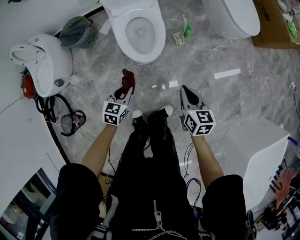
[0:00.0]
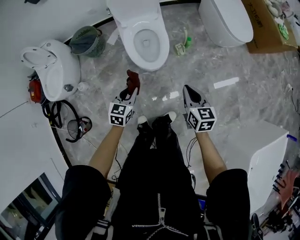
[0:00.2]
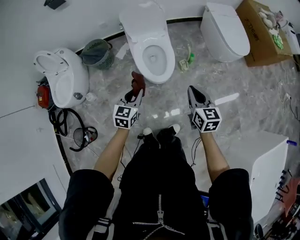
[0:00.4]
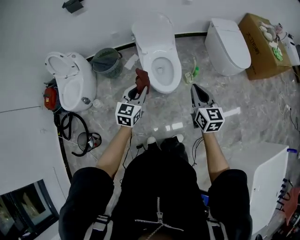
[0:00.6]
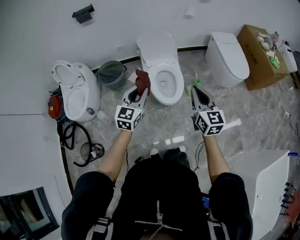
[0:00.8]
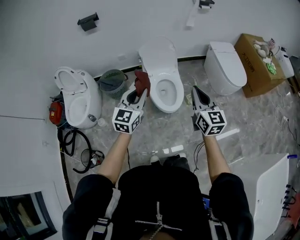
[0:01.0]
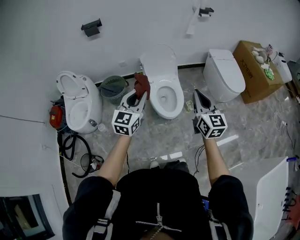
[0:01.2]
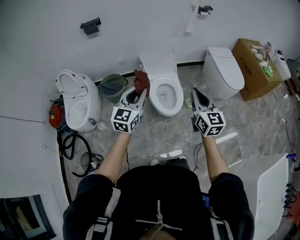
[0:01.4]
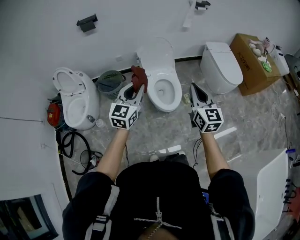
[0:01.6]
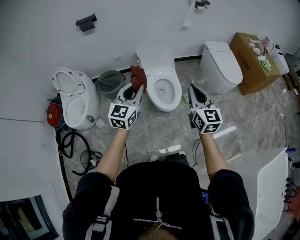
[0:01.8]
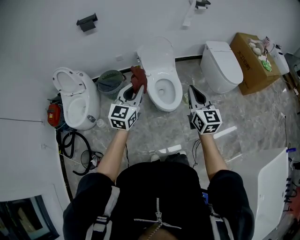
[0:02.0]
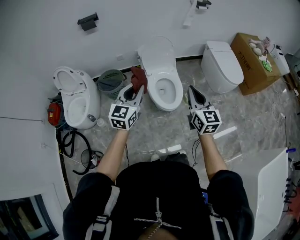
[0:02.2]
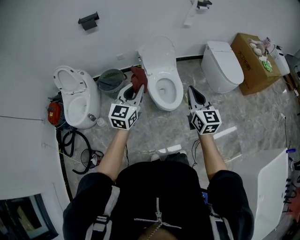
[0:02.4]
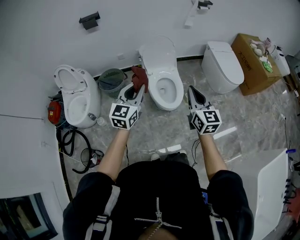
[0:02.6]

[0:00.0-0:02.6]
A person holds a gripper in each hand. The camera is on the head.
0:00.0 to 0:01.2: The left gripper travels upward by approximately 40 cm, and tilts its fingers roughly 40 degrees upward; the right gripper is displaced upward and to the left by roughly 40 cm, and tilts its fingers some 30 degrees upward.
0:01.2 to 0:02.6: The grippers move only a little.

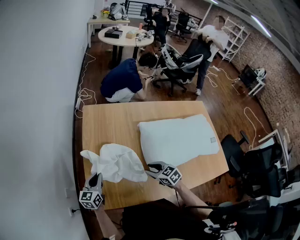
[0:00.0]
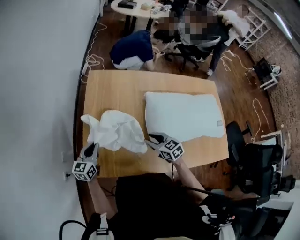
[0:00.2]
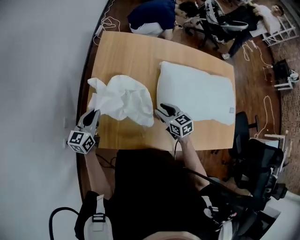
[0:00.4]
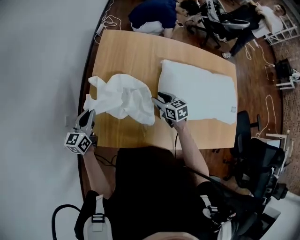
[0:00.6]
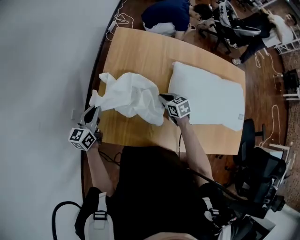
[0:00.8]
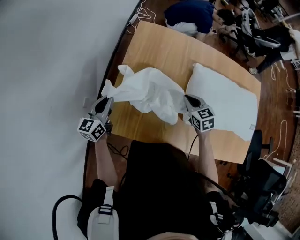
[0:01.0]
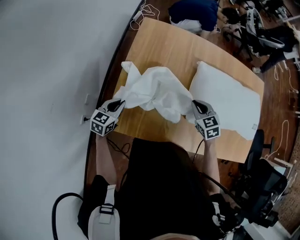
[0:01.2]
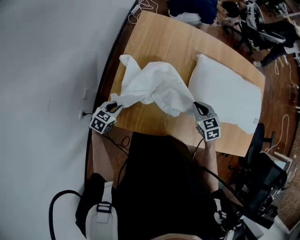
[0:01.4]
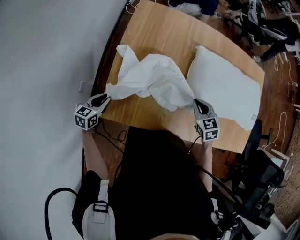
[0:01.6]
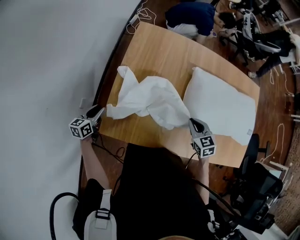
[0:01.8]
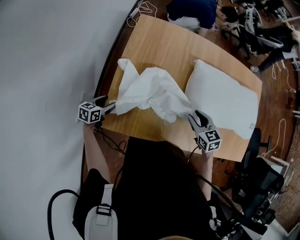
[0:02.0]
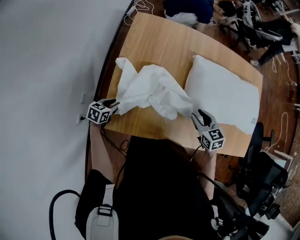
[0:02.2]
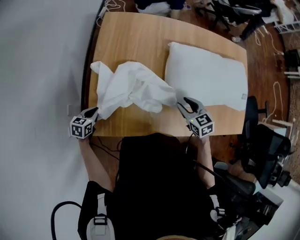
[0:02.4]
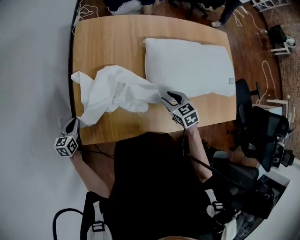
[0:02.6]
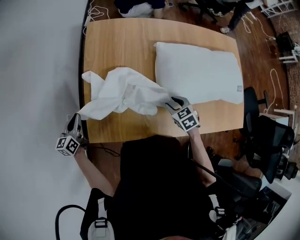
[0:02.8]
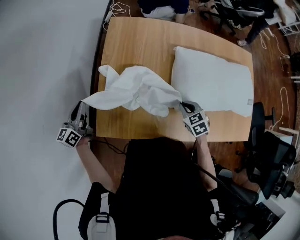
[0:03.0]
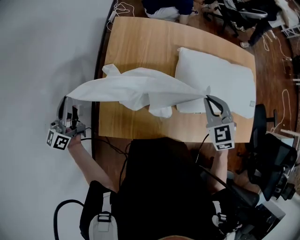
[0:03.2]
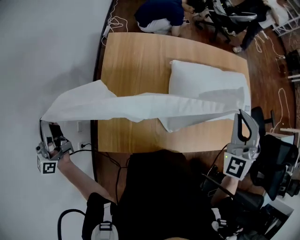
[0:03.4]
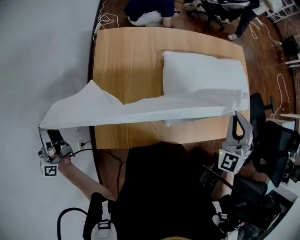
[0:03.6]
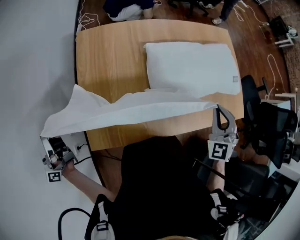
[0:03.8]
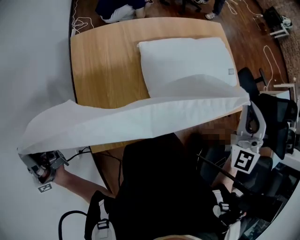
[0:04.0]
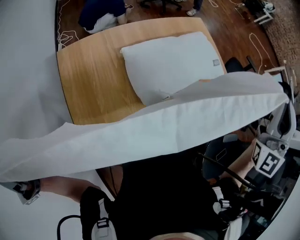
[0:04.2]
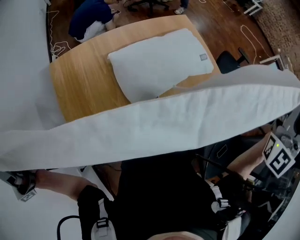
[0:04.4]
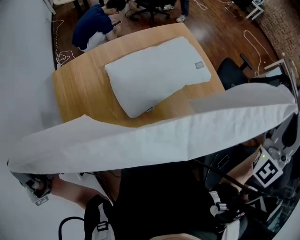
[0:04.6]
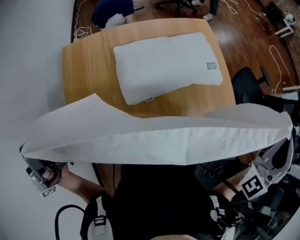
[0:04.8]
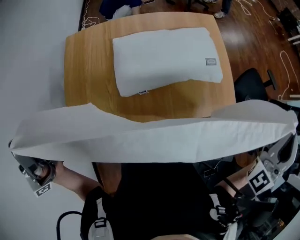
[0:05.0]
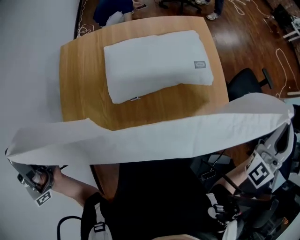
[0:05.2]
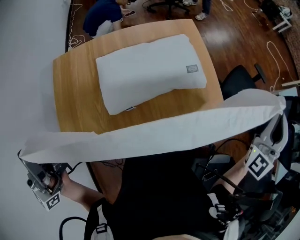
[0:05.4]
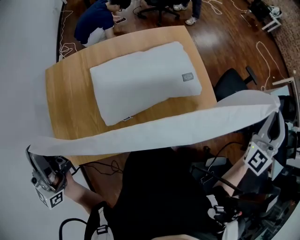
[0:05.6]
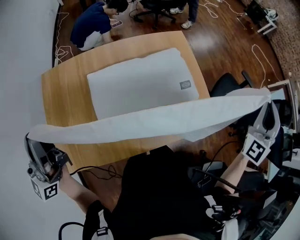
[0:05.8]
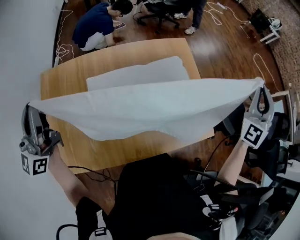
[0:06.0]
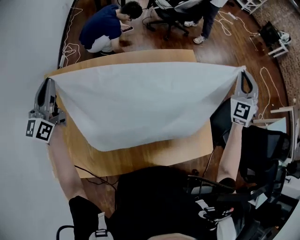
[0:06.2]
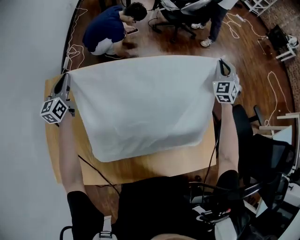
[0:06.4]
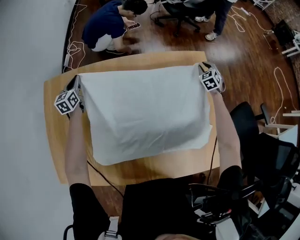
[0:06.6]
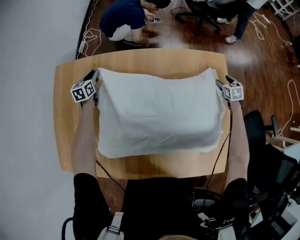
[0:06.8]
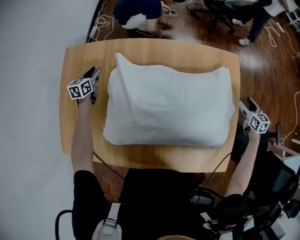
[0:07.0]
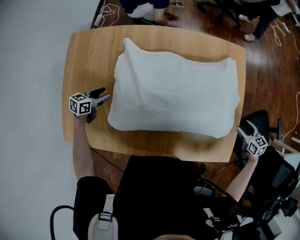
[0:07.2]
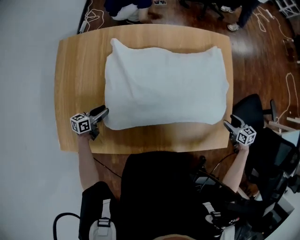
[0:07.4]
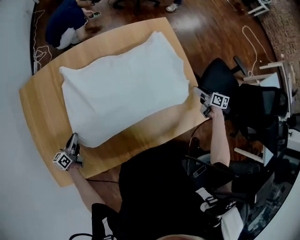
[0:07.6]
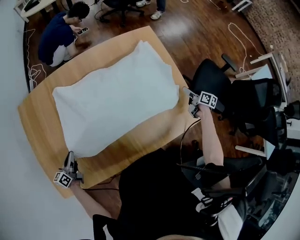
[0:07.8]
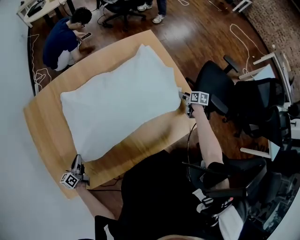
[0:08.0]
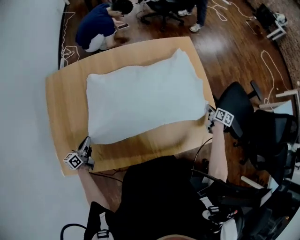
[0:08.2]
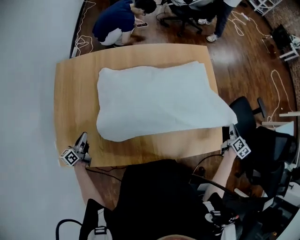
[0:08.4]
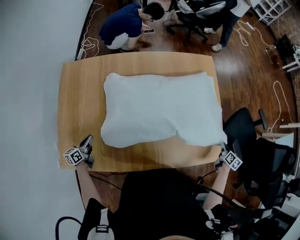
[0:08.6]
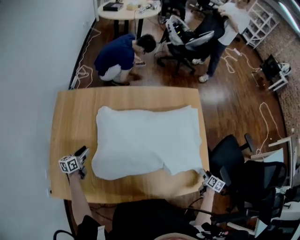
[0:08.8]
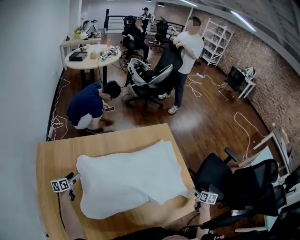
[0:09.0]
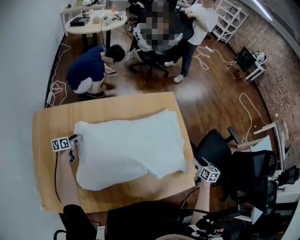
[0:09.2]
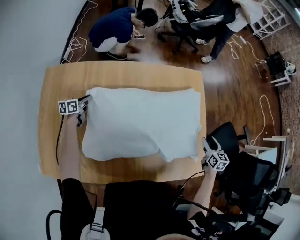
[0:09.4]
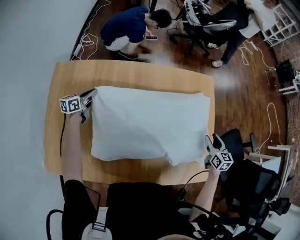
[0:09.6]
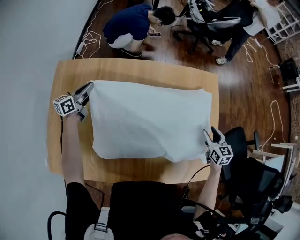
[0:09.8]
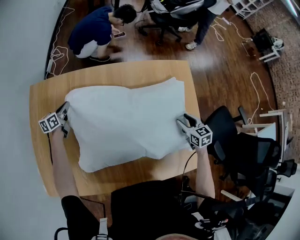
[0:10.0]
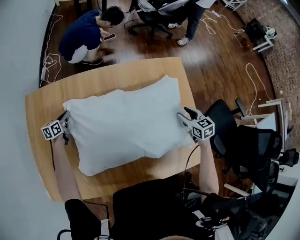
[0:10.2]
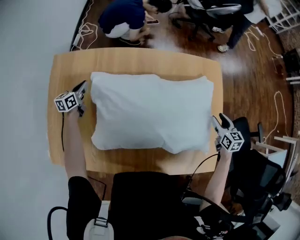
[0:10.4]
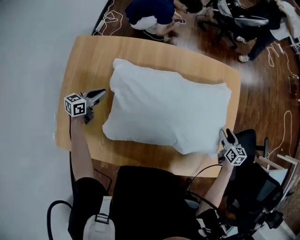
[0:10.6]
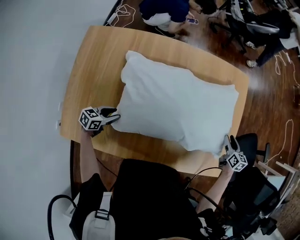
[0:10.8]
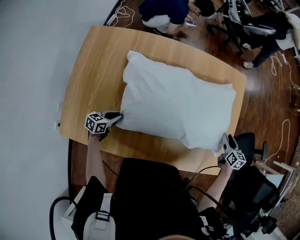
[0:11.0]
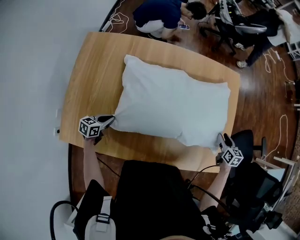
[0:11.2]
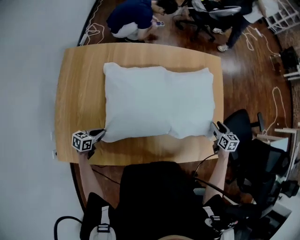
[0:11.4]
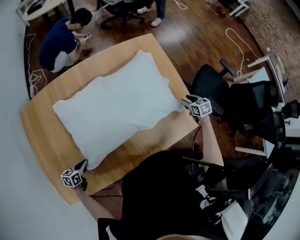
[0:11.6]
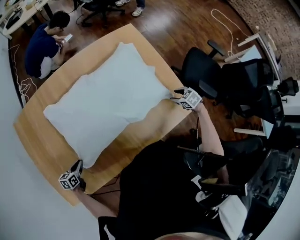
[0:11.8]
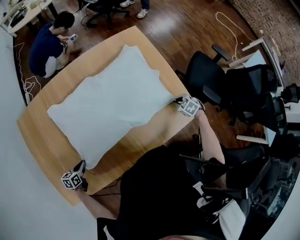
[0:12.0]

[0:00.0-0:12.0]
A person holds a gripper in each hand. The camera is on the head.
0:00.0 to 0:01.6: The left gripper moves downward and to the left, about 10 cm, and changes its angle by roughly 20 degrees; the right gripper travels to the right by some 5 cm, reaches approximately 15 cm forward, then returns, and closes.
0:01.6 to 0:03.0: The left gripper shifts approximately 15 cm upward and forward, turns by some 30 degrees, and opens, then closes again; the right gripper opens, then closes once more.
0:03.0 to 0:04.4: The right gripper goes up and down, roughly 60 cm each way, reversing 2 times, and angles its fingers upward, by roughly 80 degrees. The left gripper goes up and down, approximately 40 cm each way, reversing 2 times, and tips its fingers upward by approximately 60 degrees.
0:04.4 to 0:06.0: The two grippers go about 40 cm forward, to the right and downward. The right gripper turns by approximately 20 degrees. The left gripper tips its fingers downward by roughly 30 degrees.
0:06.0 to 0:07.6: Both grippers travel together downward, approximately 50 cm. The left gripper tips its fingers downward by about 40 degrees, and opens, then closes once more, while the right gripper rolls clockwise, seen from behind, by roughly 100 degrees, and opens up.
0:07.6 to 0:09.0: The left gripper travels forward by about 15 cm, and opens up; the right gripper swings up and down, some 15 cm each way, with 3 reversals, turns by some 30 degrees, and closes, then opens again.
0:09.0 to 0:10.4: The right gripper goes roughly 30 cm forward and to the left, and rotates approximately 40 degrees. The left gripper goes up and down, roughly 15 cm each way, reversing 3 times, and closes its fingers.
0:10.4 to 0:12.0: The left gripper ends up roughly 35 cm from where it was, swivels some 40 degrees, and opens, then closes once more. The right gripper shifts by some 25 cm, tilts its fingers approximately 30 degrees downward, and closes.

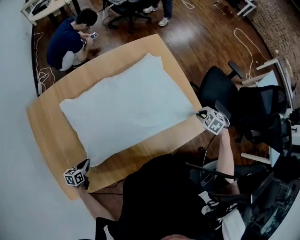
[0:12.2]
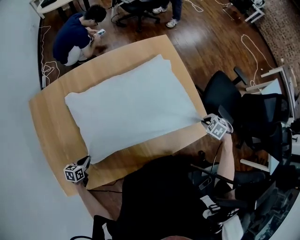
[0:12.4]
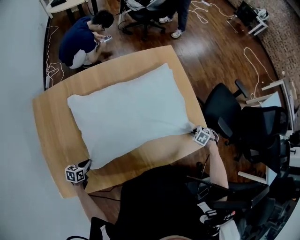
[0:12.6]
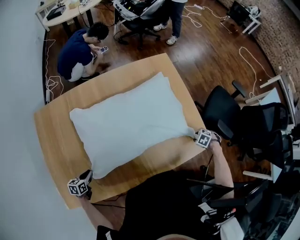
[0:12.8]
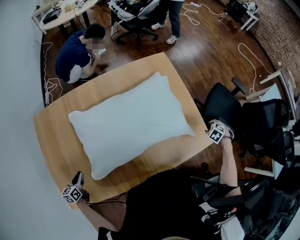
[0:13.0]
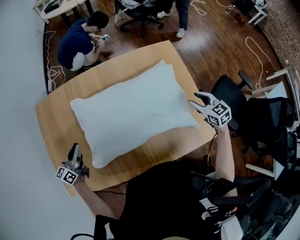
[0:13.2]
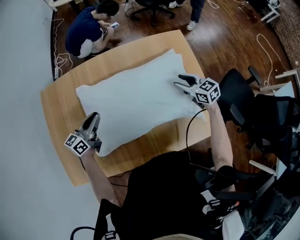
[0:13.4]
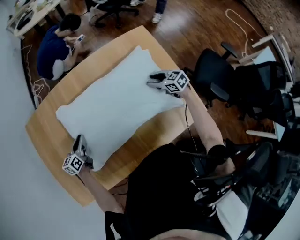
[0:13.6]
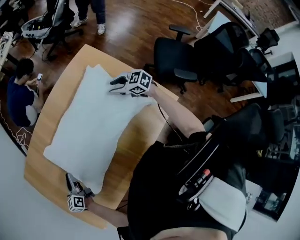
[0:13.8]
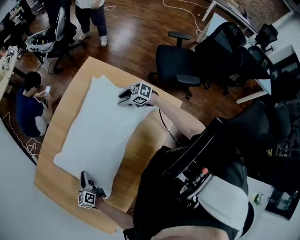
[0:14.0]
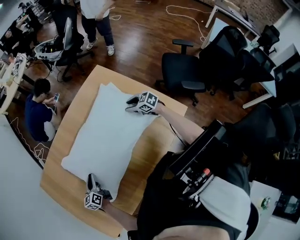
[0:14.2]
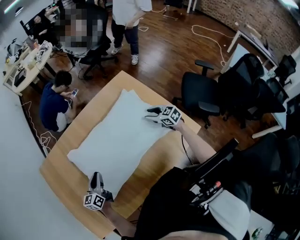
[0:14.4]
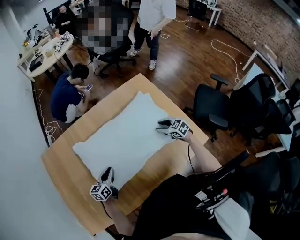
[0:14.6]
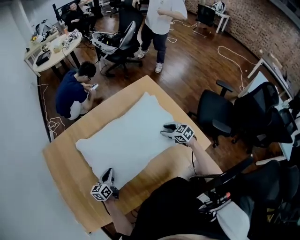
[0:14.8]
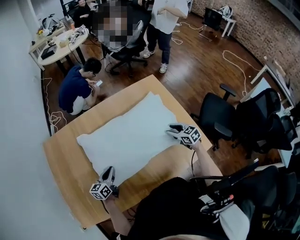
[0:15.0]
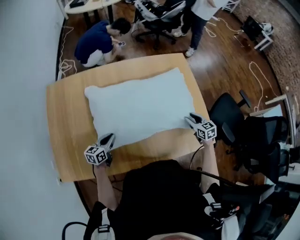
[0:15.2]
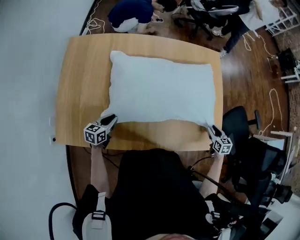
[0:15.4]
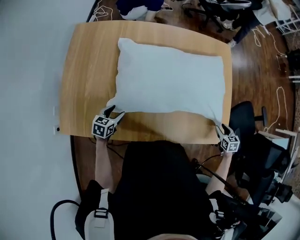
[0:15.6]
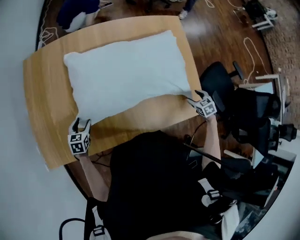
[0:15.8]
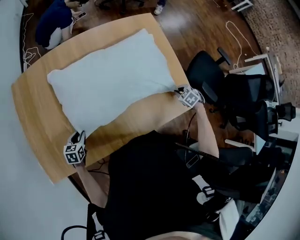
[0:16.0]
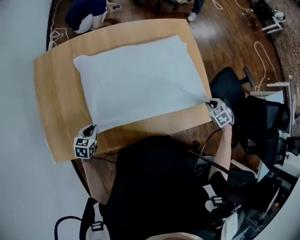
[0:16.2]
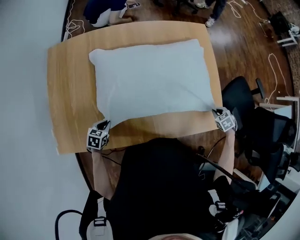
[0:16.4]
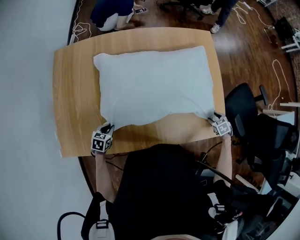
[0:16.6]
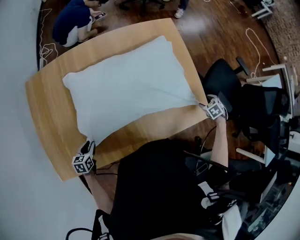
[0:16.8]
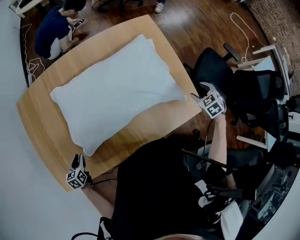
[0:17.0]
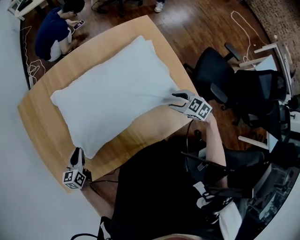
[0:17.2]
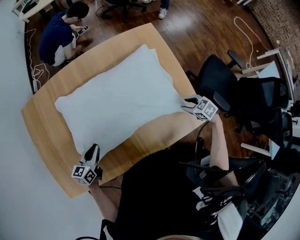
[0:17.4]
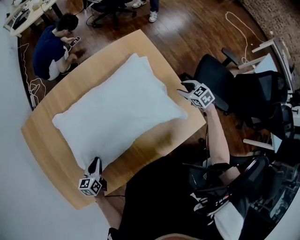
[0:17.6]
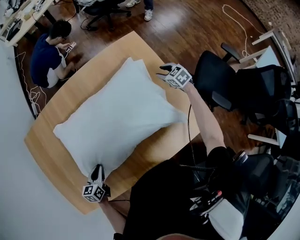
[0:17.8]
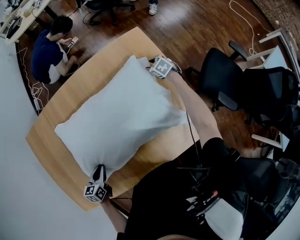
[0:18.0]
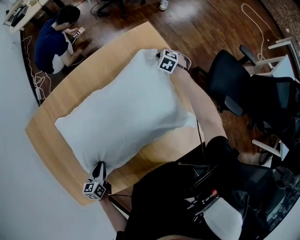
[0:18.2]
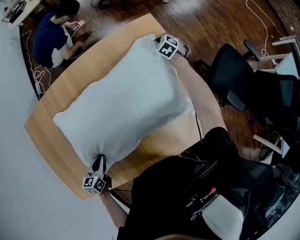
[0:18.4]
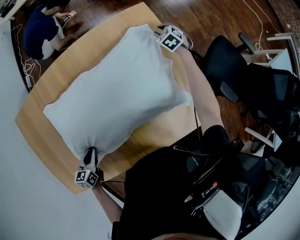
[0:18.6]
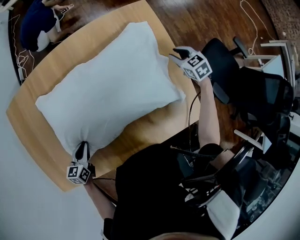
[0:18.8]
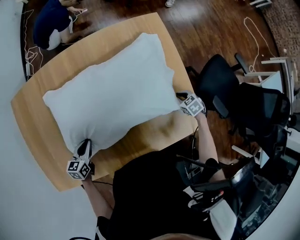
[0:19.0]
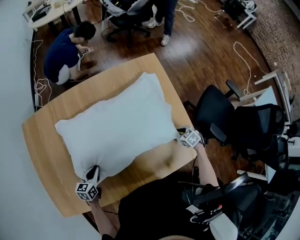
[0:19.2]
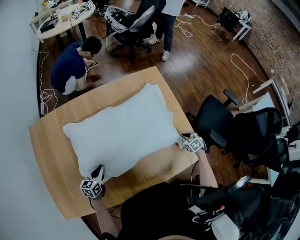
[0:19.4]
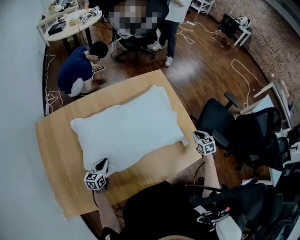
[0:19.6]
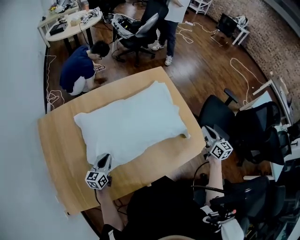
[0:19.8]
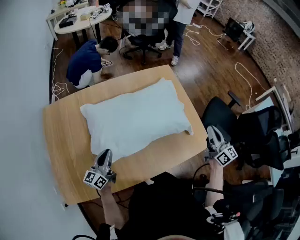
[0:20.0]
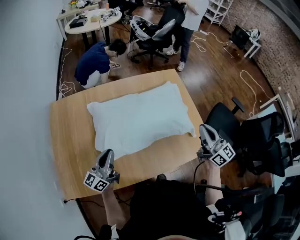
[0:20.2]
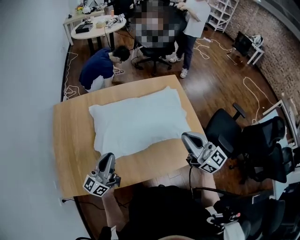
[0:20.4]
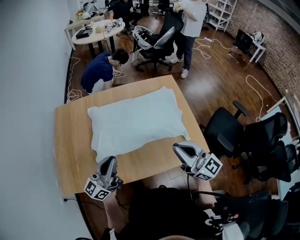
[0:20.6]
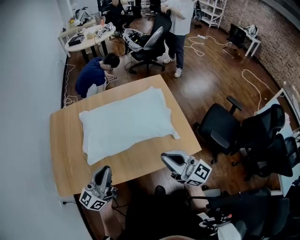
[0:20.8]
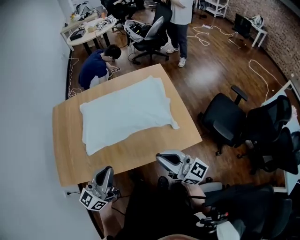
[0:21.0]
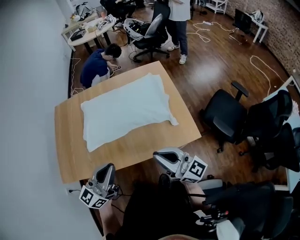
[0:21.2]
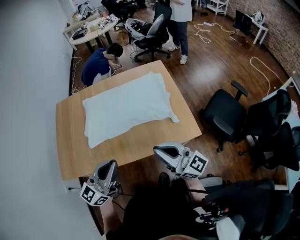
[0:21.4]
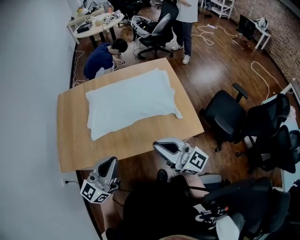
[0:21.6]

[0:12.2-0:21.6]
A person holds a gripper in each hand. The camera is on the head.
0:12.2 to 0:13.8: The left gripper goes up and down, some 20 cm each way, reversing 2 times, and tilts its fingers some 30 degrees upward; the right gripper swings up and down, roughly 20 cm each way, with 3 reversals, points its fingers approximately 50 degrees further upward, and opens.
0:13.8 to 0:15.4: The left gripper goes about 20 cm backward and downward. Meanwhile the right gripper is displaced backward, to the right and downward by approximately 25 cm, and swivels about 30 degrees.
0:15.4 to 0:17.0: The right gripper swings up and down, approximately 15 cm each way, with 3 reversals, rotates approximately 30 degrees, and opens its fingers, while the left gripper goes up and down, roughly 5 cm each way, reversing 3 times, rotates approximately 20 degrees, and opens, then closes once more.
0:17.0 to 0:18.4: The right gripper ends up approximately 50 cm from where it was, and closes up, while the left gripper shifts by approximately 20 cm.
0:18.4 to 0:20.0: The right gripper goes about 60 cm backward and upward, tips its fingers upward by roughly 60 degrees, and opens, then closes once more. The left gripper heads upward and backward, covering some 15 cm, and angles its fingers upward, by roughly 50 degrees.
0:20.0 to 0:21.6: The left gripper is displaced backward, upward and to the right by about 40 cm, and turns by about 30 degrees. Meanwhile the right gripper is displaced backward and to the left by approximately 25 cm, and rotates about 50 degrees.
